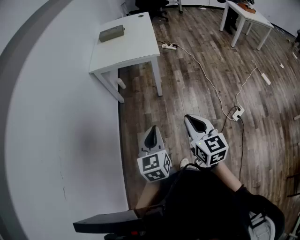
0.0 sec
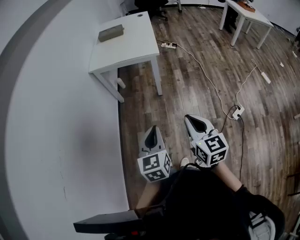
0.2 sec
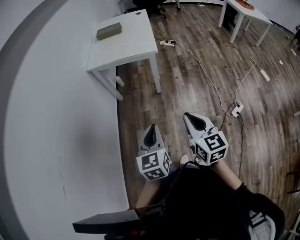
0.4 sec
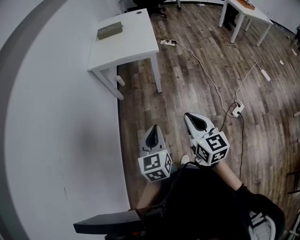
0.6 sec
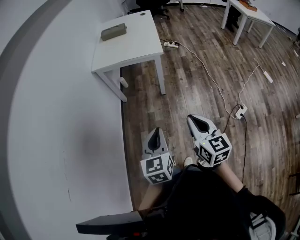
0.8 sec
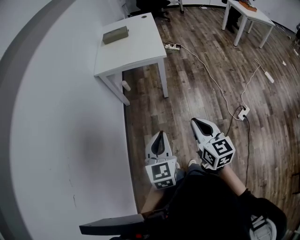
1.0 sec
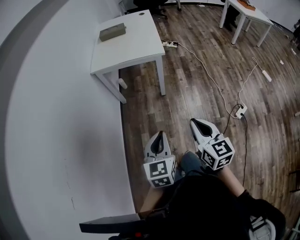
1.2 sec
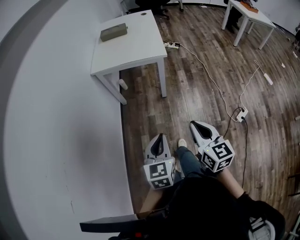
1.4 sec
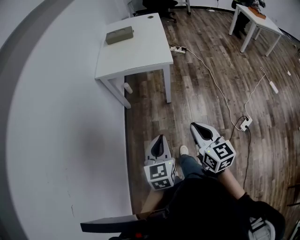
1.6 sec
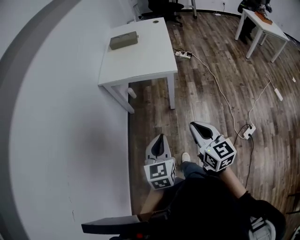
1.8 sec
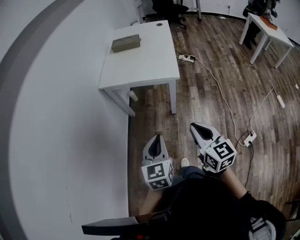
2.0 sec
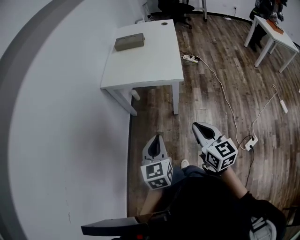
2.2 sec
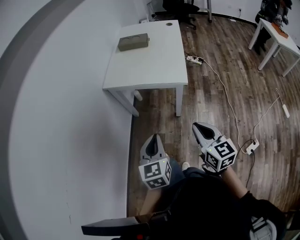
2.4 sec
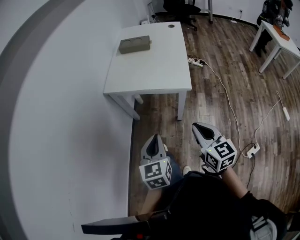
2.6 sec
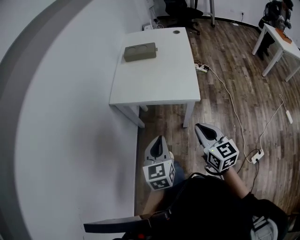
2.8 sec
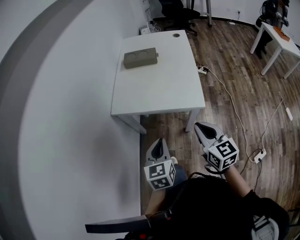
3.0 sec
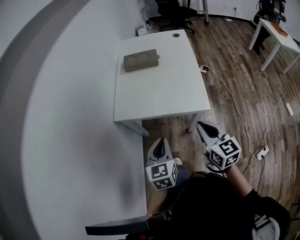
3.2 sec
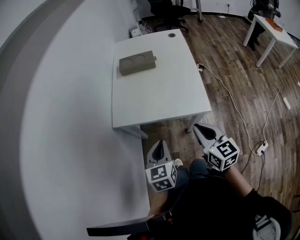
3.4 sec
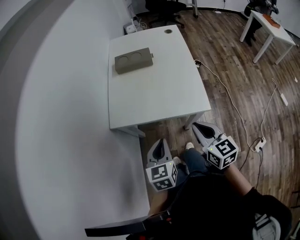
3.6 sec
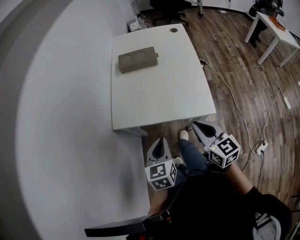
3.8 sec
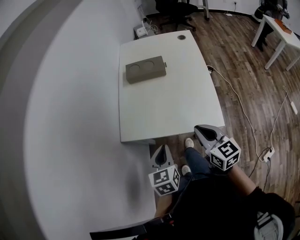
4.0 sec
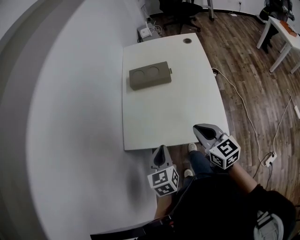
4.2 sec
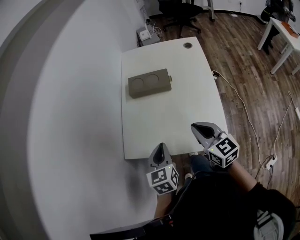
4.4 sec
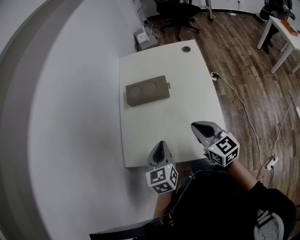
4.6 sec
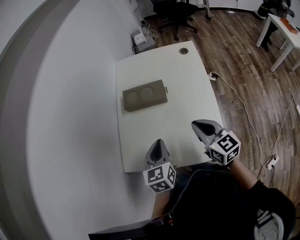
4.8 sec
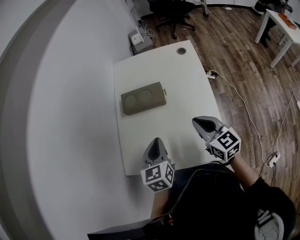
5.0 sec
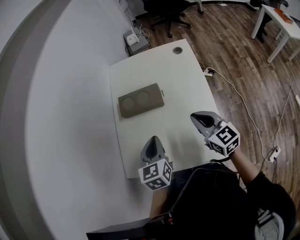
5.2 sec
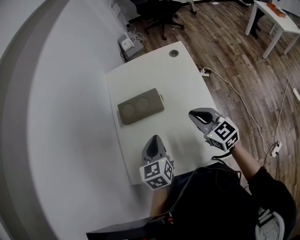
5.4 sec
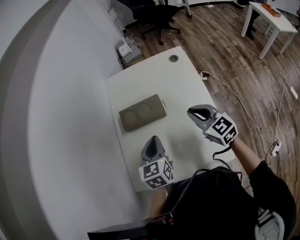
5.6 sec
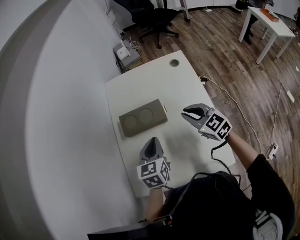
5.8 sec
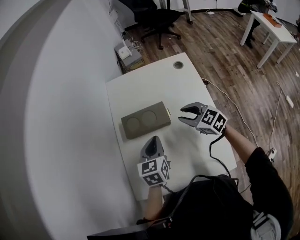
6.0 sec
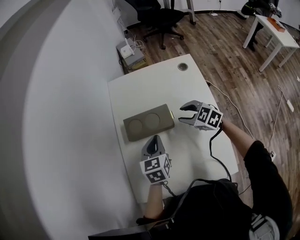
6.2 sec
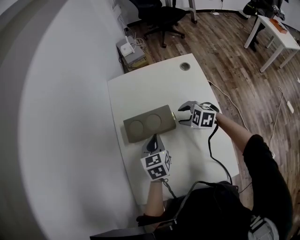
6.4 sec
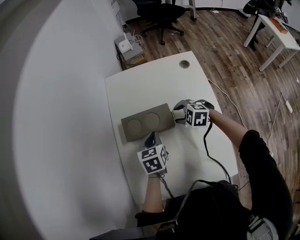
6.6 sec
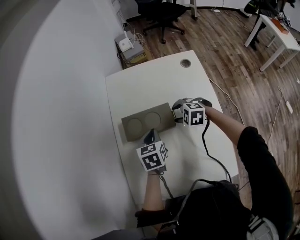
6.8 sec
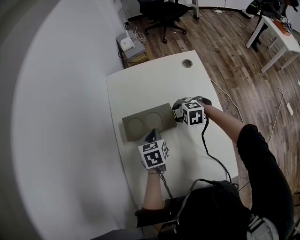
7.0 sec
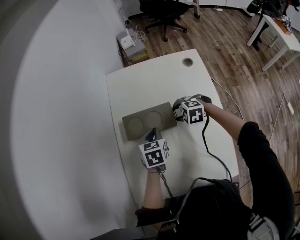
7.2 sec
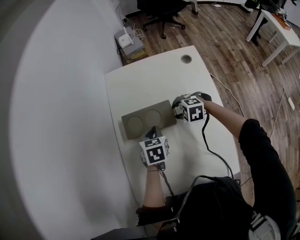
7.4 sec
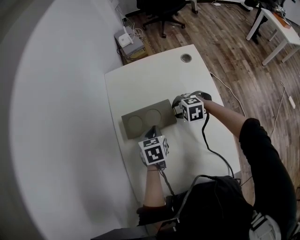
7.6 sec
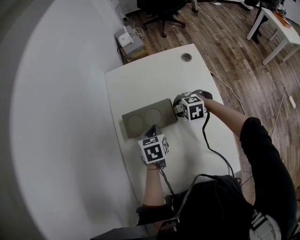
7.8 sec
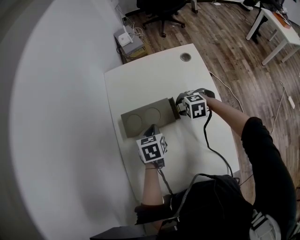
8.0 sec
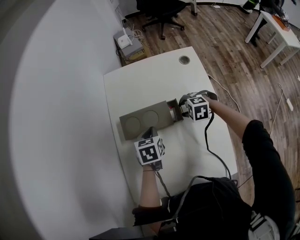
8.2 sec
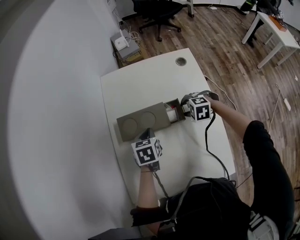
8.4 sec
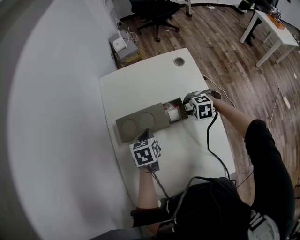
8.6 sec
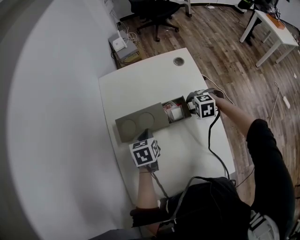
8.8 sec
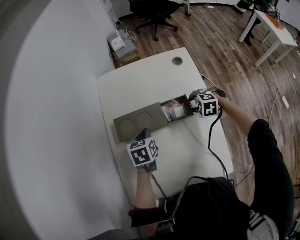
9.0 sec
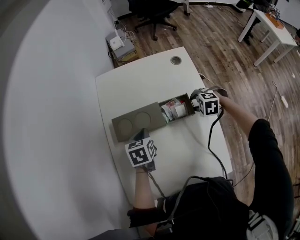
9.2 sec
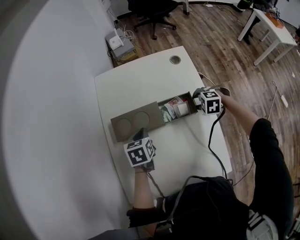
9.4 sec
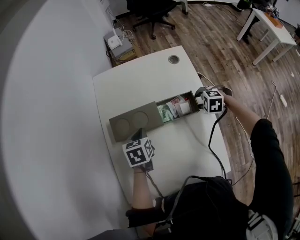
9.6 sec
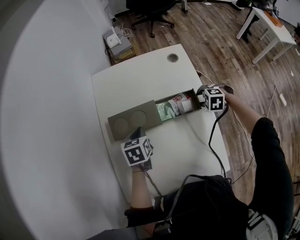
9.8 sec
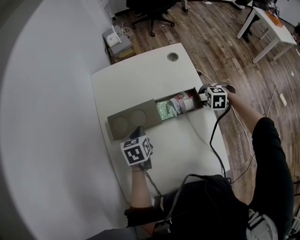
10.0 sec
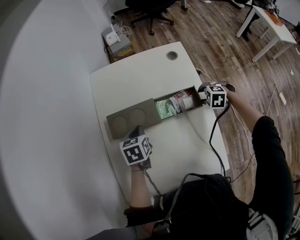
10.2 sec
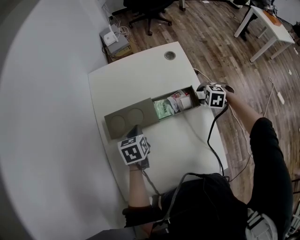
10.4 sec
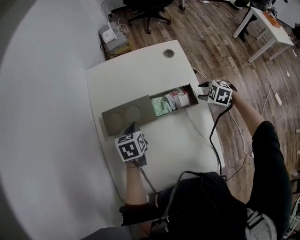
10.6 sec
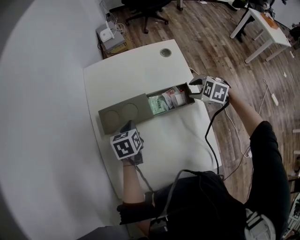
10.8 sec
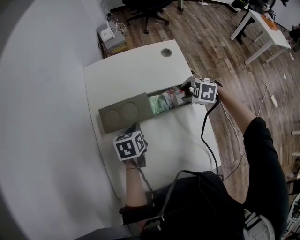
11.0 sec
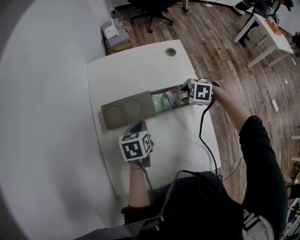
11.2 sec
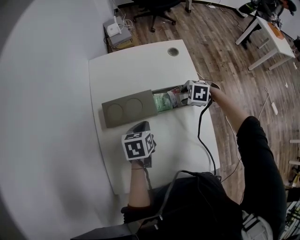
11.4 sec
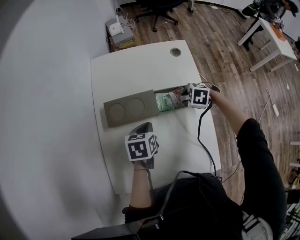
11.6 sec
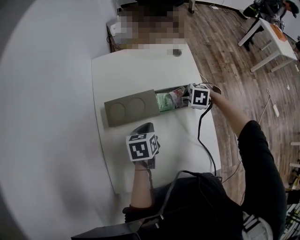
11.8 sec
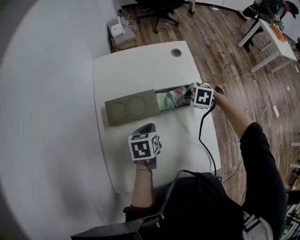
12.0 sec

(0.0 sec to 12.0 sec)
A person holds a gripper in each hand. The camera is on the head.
0.0 sec - 1.6 sec: The two grippers go about 10 cm forward.
1.6 sec - 3.0 sec: The grippers both shift forward by roughly 35 cm.
3.0 sec - 4.4 sec: Both grippers travel together forward, roughly 30 cm.
4.4 sec - 6.0 sec: The two grippers go some 25 cm forward. The right gripper turns by about 20 degrees, and opens its fingers.
6.0 sec - 7.6 sec: The two grippers go approximately 15 cm downward and forward. The right gripper angles its fingers downward, by approximately 30 degrees. The left gripper turns by some 20 degrees.
7.6 sec - 9.0 sec: The right gripper ends up roughly 15 cm from where it was.
9.0 sec - 10.4 sec: The right gripper moves some 10 cm.
10.4 sec - 12.0 sec: The right gripper ends up some 10 cm from where it was, and closes its fingers; the left gripper shifts by some 5 cm.

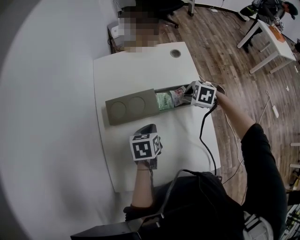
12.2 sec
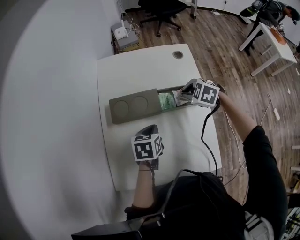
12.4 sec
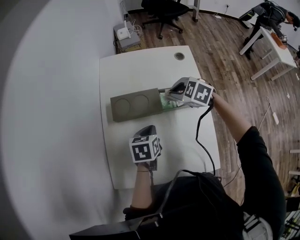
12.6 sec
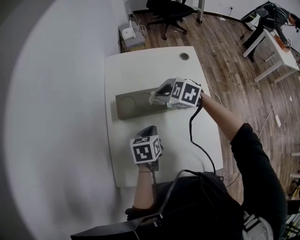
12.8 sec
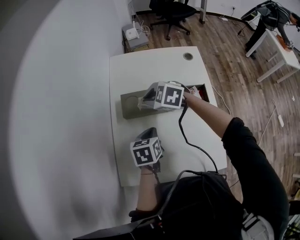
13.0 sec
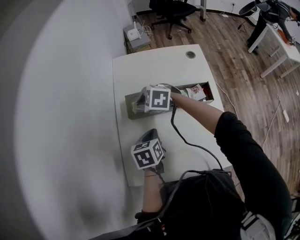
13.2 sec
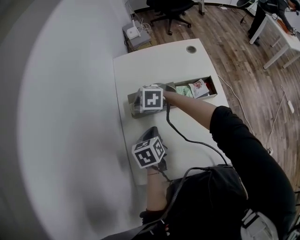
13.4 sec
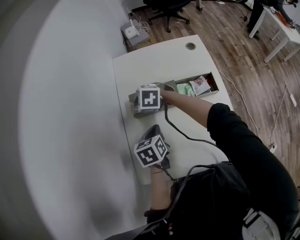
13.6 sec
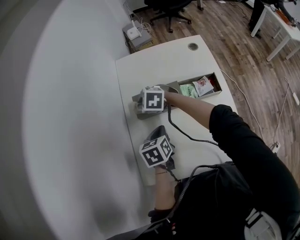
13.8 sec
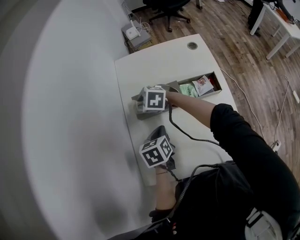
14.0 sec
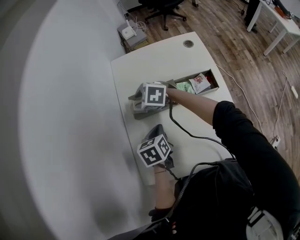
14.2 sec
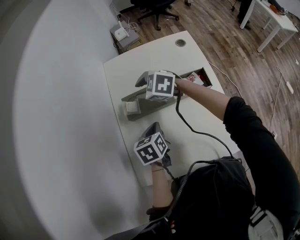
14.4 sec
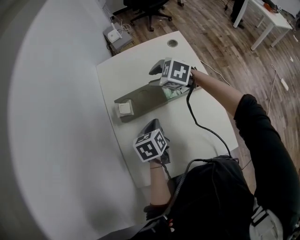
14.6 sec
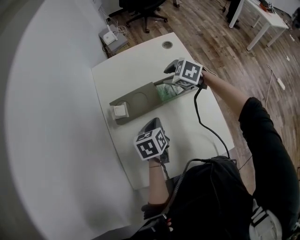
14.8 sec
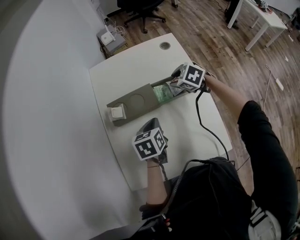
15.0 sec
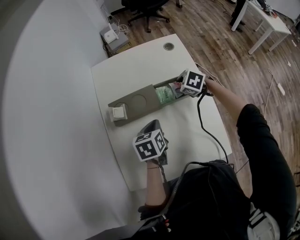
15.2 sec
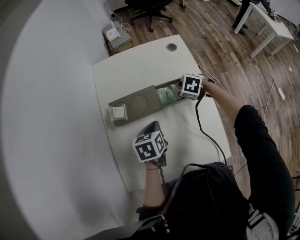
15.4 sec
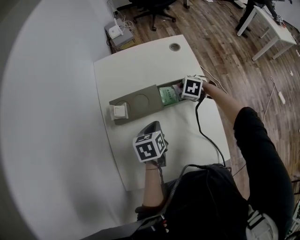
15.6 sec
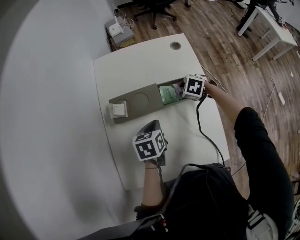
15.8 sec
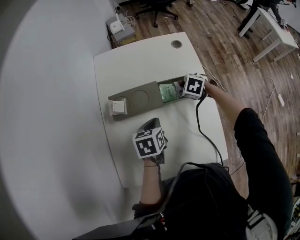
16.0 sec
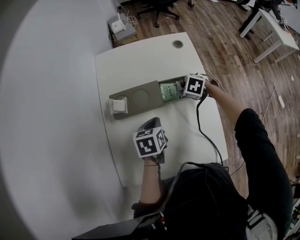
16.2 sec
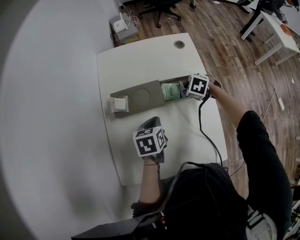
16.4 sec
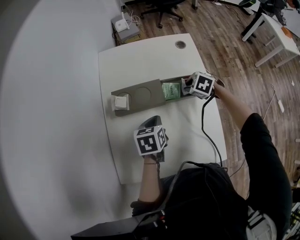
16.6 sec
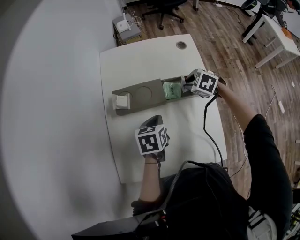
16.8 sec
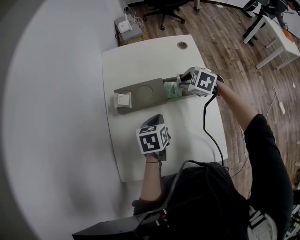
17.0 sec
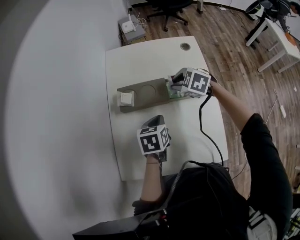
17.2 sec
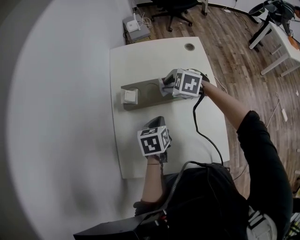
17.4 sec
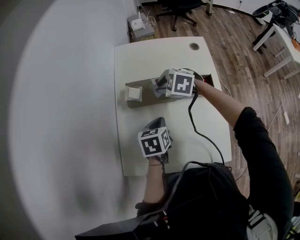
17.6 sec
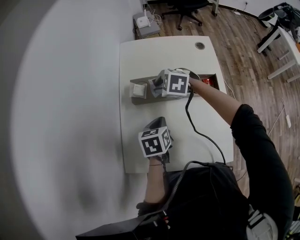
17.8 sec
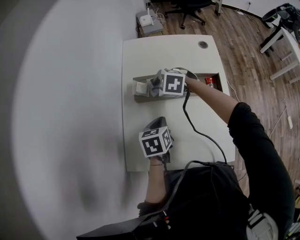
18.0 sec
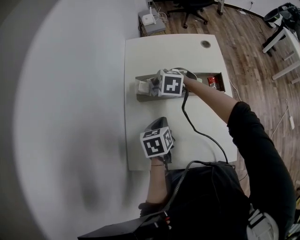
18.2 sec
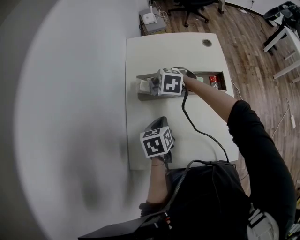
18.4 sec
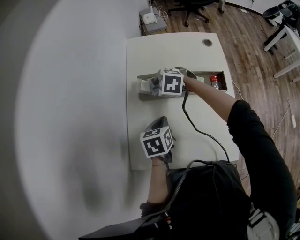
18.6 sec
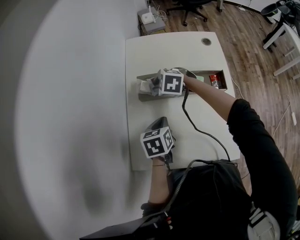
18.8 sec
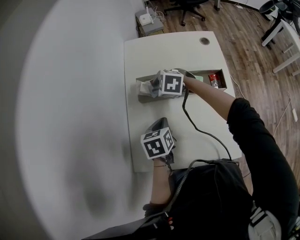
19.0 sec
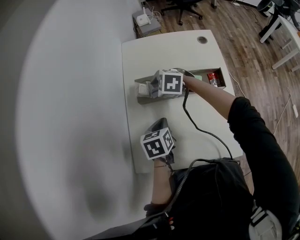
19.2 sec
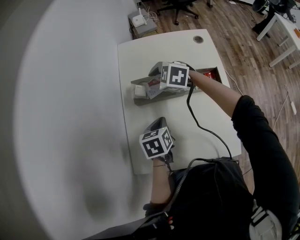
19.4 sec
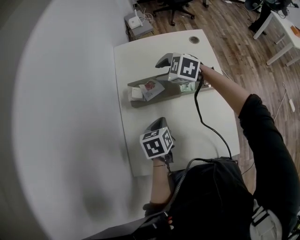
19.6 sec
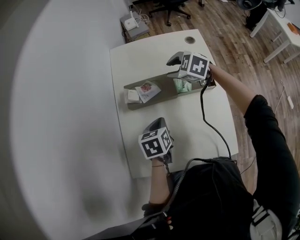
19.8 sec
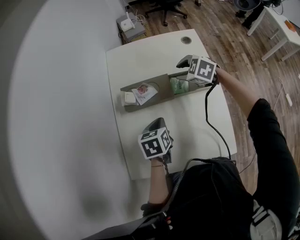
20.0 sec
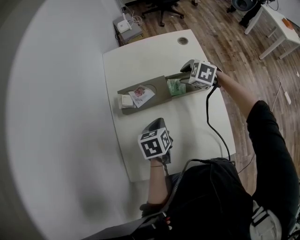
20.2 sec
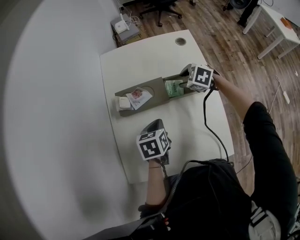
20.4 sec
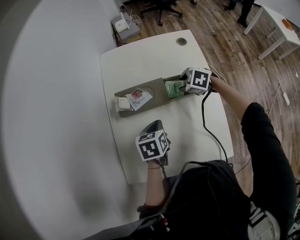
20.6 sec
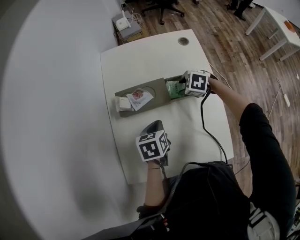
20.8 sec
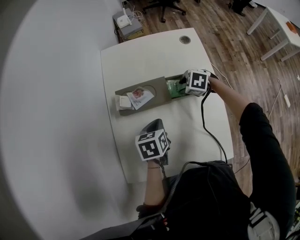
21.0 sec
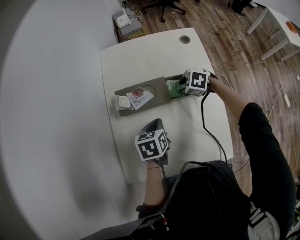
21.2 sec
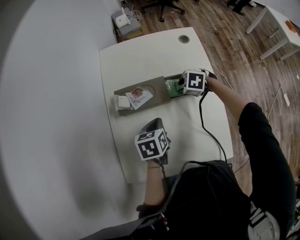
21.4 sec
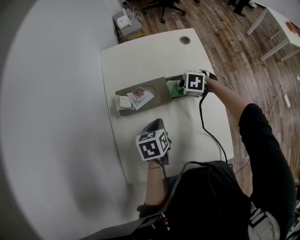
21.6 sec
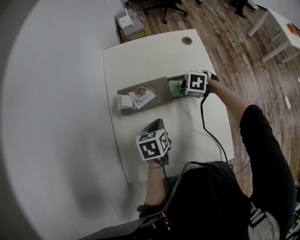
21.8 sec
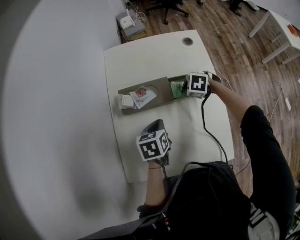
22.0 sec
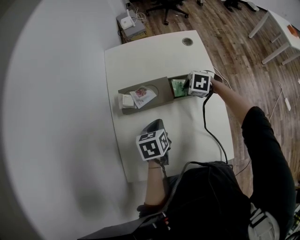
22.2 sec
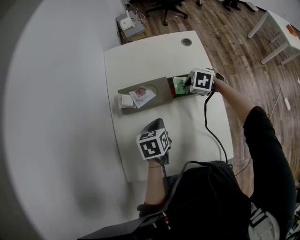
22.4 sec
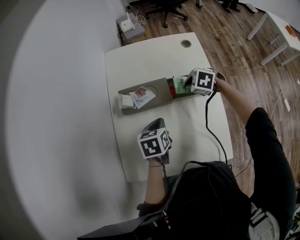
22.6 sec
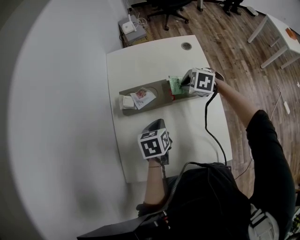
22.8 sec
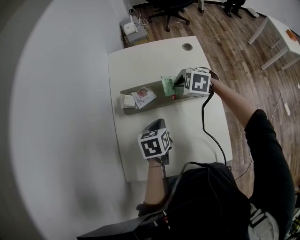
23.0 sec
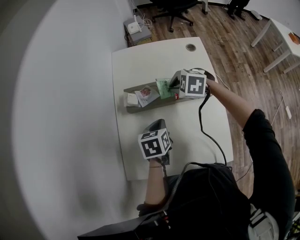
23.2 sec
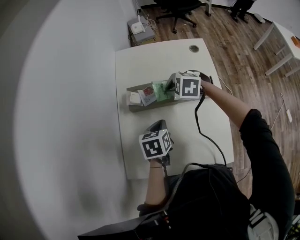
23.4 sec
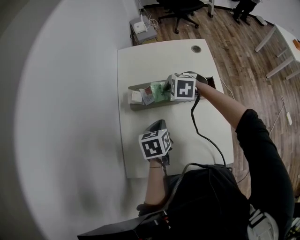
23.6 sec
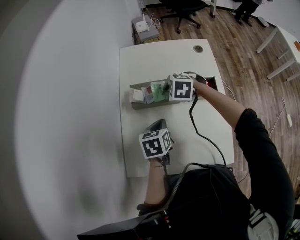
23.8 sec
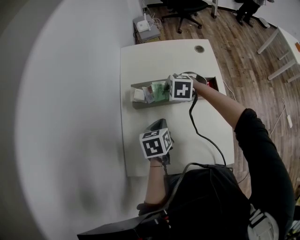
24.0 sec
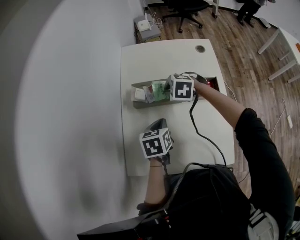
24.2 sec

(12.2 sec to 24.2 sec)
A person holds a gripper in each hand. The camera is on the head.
12.2 sec - 13.8 sec: The left gripper shifts roughly 10 cm to the left; the right gripper heads to the left, covering roughly 35 cm, and changes its angle by approximately 20 degrees.
13.8 sec - 15.2 sec: The left gripper heads to the right, covering approximately 10 cm; the right gripper shifts some 30 cm to the right, turns by about 30 degrees, and opens.
15.2 sec - 16.6 sec: The grippers make only small movements.
16.6 sec - 18.2 sec: The right gripper moves to the left, approximately 25 cm, and rotates roughly 30 degrees; the left gripper travels to the left by about 10 cm.
18.2 sec - 19.8 sec: The right gripper is displaced to the right by roughly 15 cm.
19.8 sec - 21.2 sec: The right gripper heads downward, to the right and backward, covering approximately 15 cm, and swivels about 20 degrees.
21.2 sec - 22.6 sec: The right gripper closes.
22.6 sec - 24.2 sec: The right gripper travels to the left by some 15 cm.
